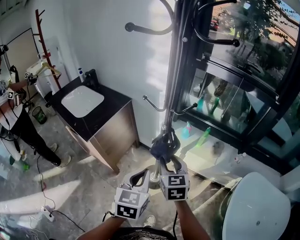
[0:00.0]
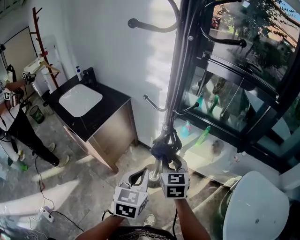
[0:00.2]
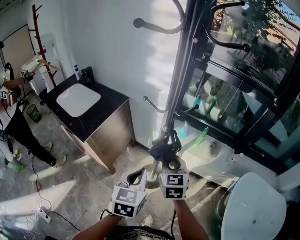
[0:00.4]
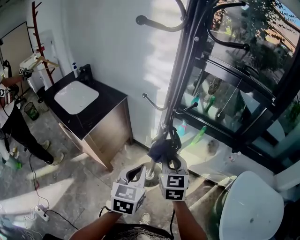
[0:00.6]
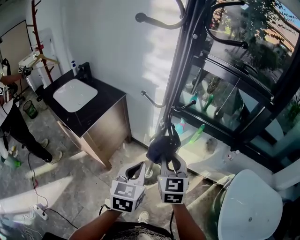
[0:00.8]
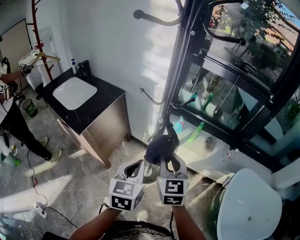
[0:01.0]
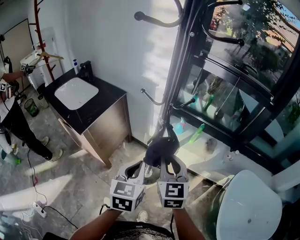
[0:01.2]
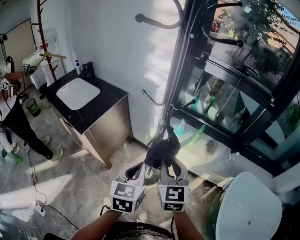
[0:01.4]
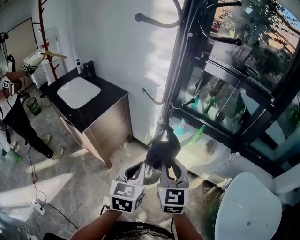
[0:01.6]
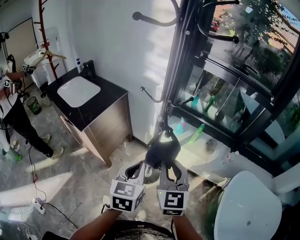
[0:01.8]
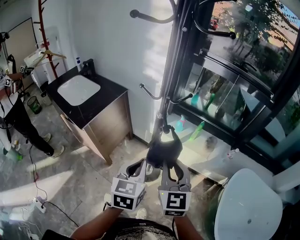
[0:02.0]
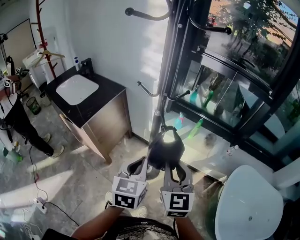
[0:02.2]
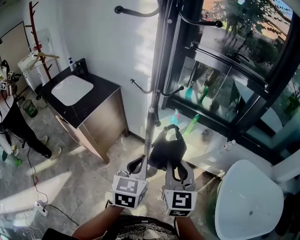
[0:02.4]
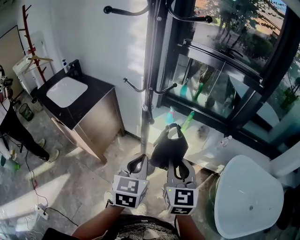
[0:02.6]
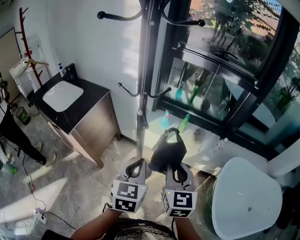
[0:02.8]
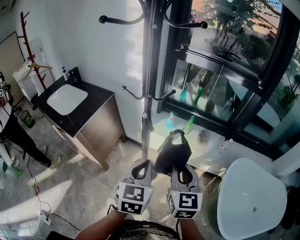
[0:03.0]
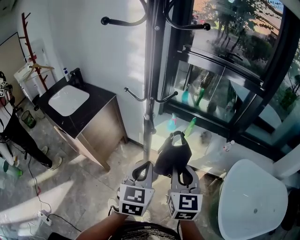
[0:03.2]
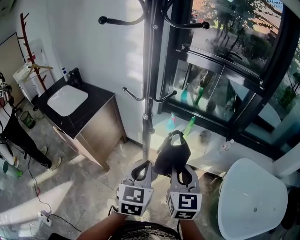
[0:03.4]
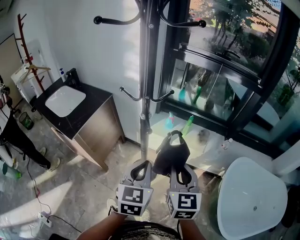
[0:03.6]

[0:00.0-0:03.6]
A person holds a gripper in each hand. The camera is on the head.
0:00.0 to 0:01.8: The right gripper shifts about 10 cm backward and upward, and closes.
0:01.8 to 0:03.6: The grippers both shift to the right by about 10 cm.

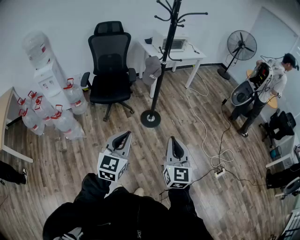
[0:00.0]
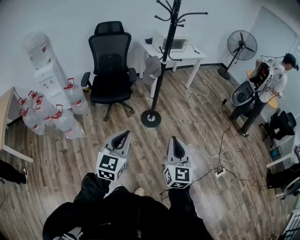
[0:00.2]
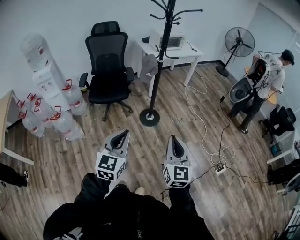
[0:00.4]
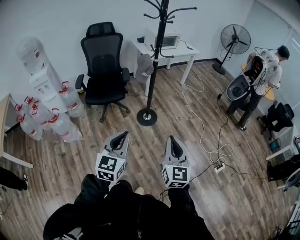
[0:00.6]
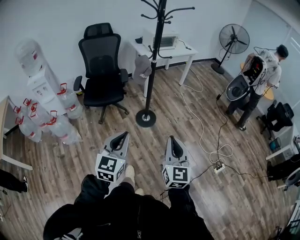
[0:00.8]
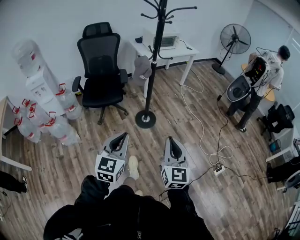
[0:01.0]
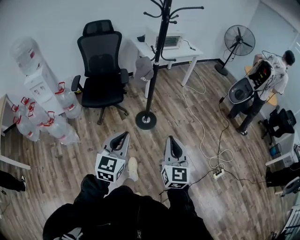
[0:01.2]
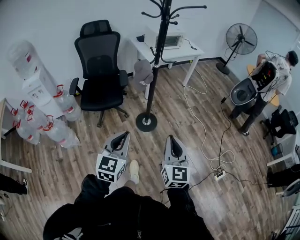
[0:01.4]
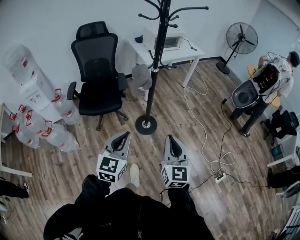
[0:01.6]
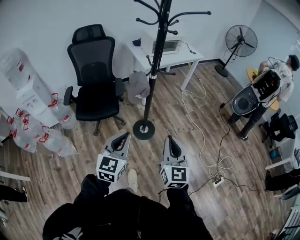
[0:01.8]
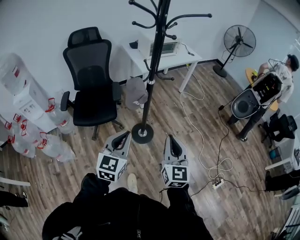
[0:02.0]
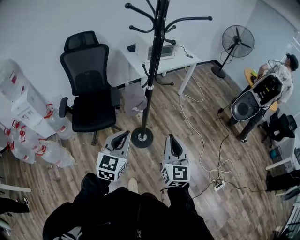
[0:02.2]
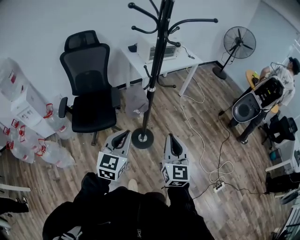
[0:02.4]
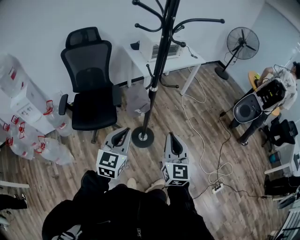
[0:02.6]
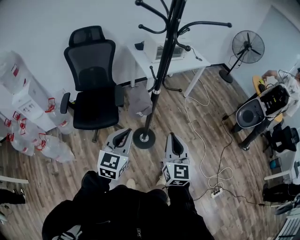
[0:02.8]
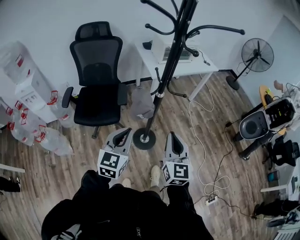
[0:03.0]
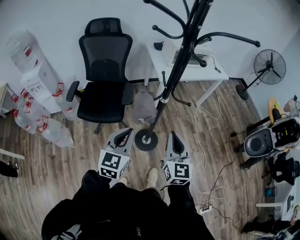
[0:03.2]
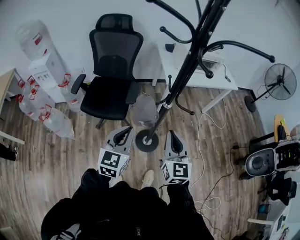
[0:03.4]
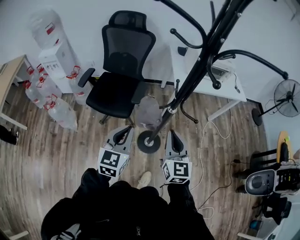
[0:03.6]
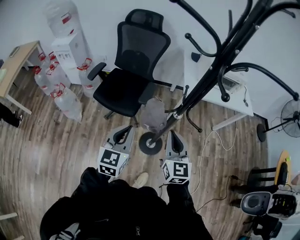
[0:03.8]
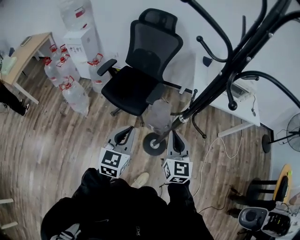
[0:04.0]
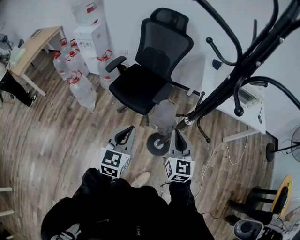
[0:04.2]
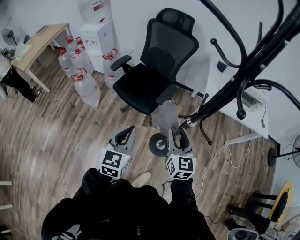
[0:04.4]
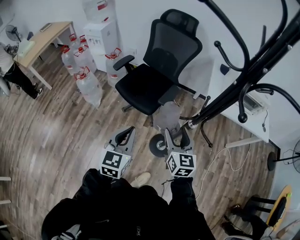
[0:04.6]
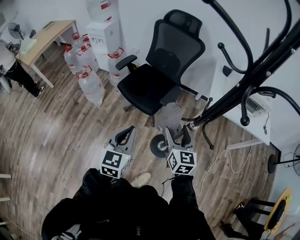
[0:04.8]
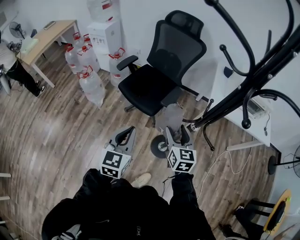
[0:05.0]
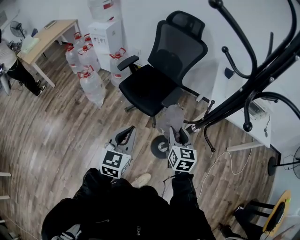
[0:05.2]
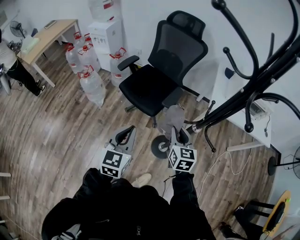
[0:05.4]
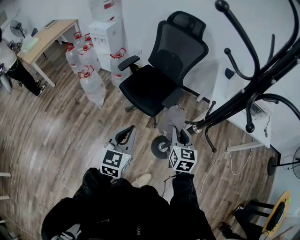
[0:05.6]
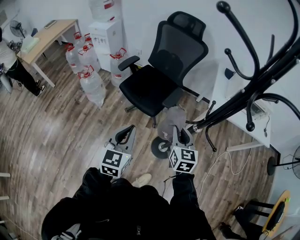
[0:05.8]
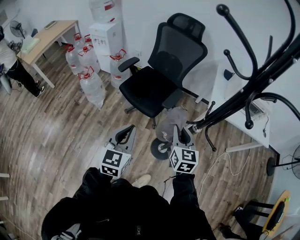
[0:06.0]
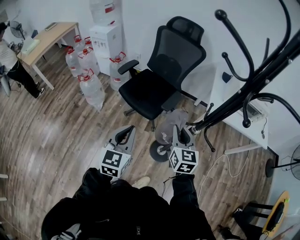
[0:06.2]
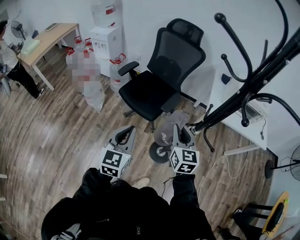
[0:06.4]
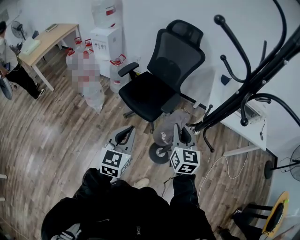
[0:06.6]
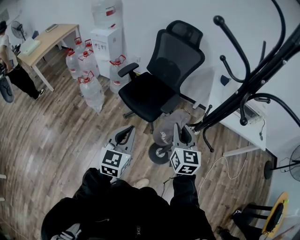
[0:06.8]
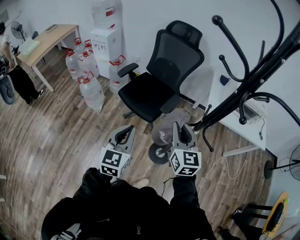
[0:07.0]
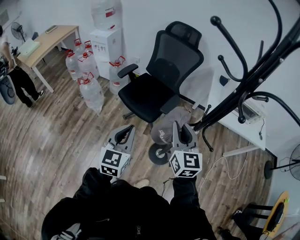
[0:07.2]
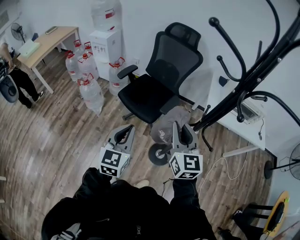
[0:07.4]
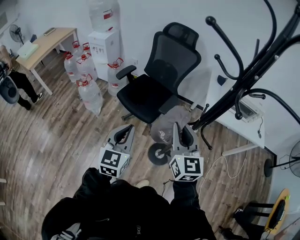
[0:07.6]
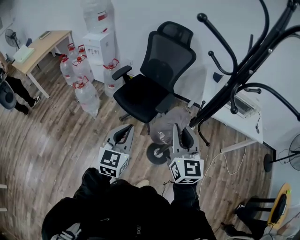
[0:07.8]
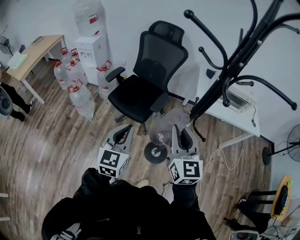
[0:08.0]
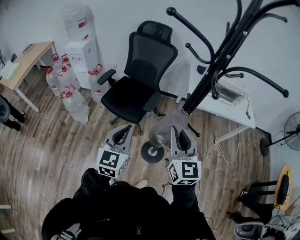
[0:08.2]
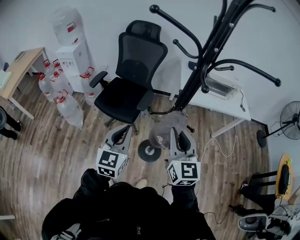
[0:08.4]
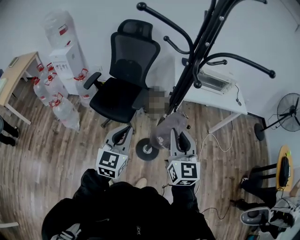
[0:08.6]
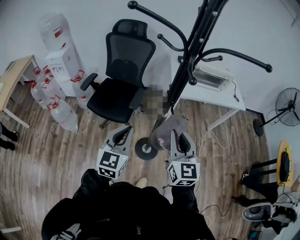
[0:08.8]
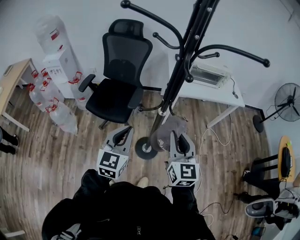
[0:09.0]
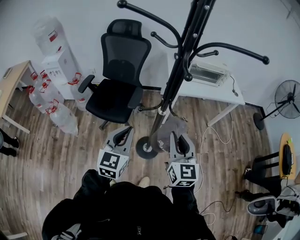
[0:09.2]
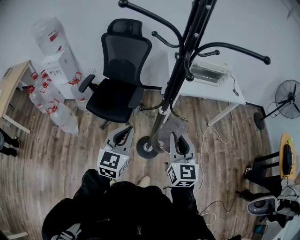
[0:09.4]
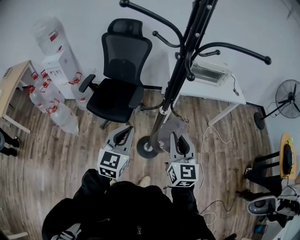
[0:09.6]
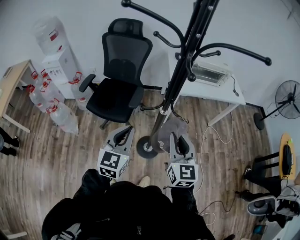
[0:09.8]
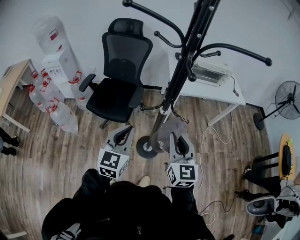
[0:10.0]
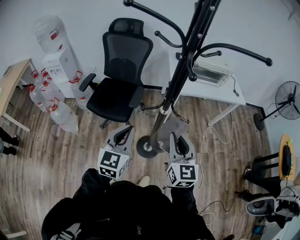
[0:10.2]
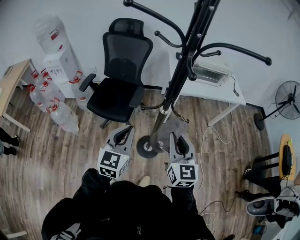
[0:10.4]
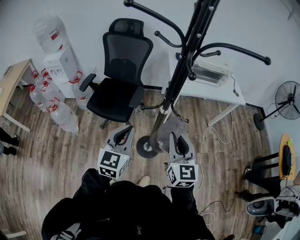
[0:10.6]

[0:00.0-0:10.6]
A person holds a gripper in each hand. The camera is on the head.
0:00.0 to 0:01.6: The grippers both shift forward by about 25 cm.
0:01.6 to 0:03.0: The grippers both shift forward by roughly 30 cm.
0:03.0 to 0:04.6: The right gripper moves roughly 25 cm, swivels about 50 degrees, and opens up, while the left gripper changes place by roughly 10 cm, and rotates roughly 40 degrees.
0:04.6 to 0:06.0: The right gripper closes up.
0:06.0 to 0:07.6: The right gripper travels upward and backward by approximately 15 cm.
0:07.6 to 0:09.0: The right gripper moves to the right and backward, some 15 cm, and changes its angle by about 20 degrees. Meanwhile the left gripper shifts roughly 15 cm to the right, and changes its angle by about 20 degrees.
0:09.0 to 0:10.6: The grippers stay close to where they were, moving slightly.

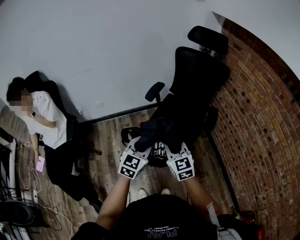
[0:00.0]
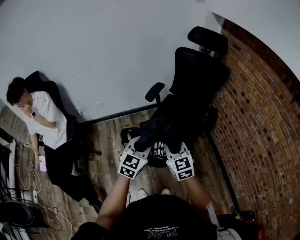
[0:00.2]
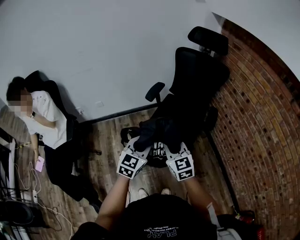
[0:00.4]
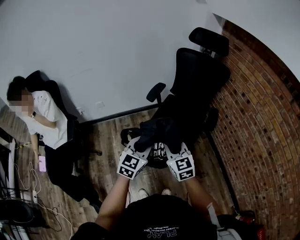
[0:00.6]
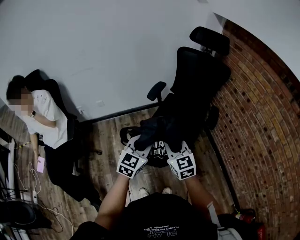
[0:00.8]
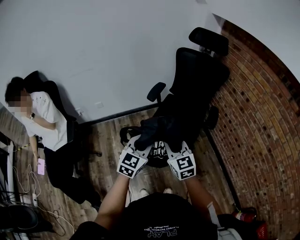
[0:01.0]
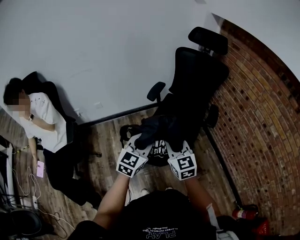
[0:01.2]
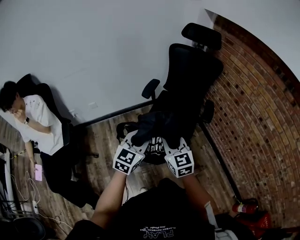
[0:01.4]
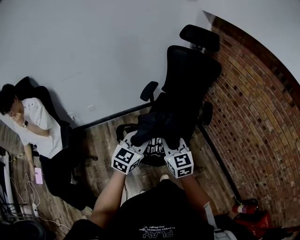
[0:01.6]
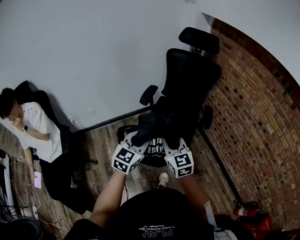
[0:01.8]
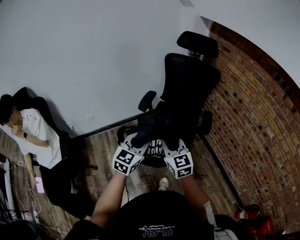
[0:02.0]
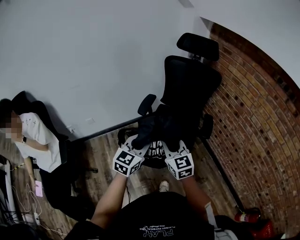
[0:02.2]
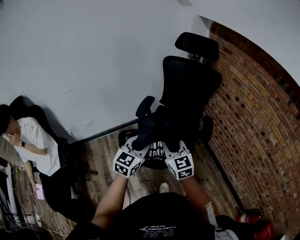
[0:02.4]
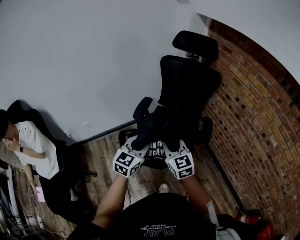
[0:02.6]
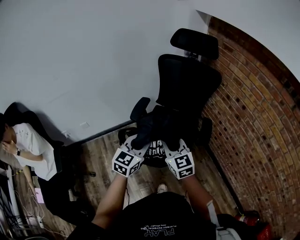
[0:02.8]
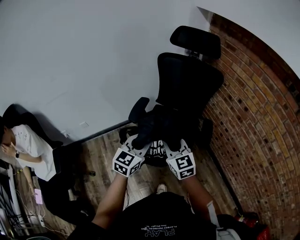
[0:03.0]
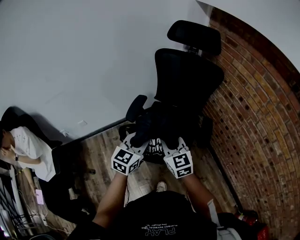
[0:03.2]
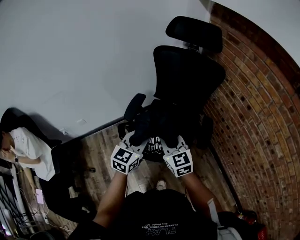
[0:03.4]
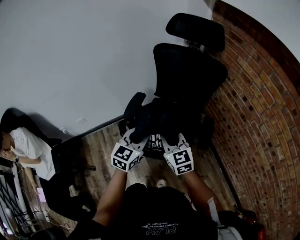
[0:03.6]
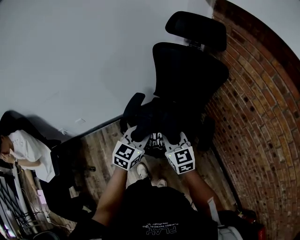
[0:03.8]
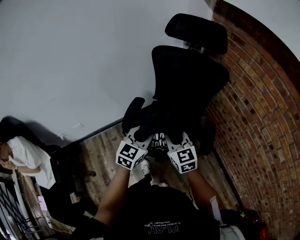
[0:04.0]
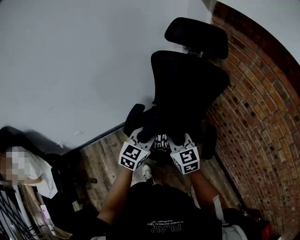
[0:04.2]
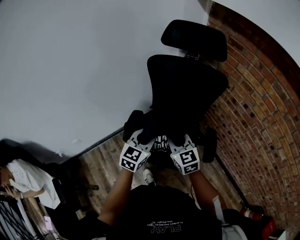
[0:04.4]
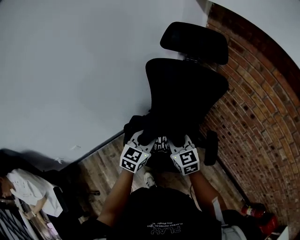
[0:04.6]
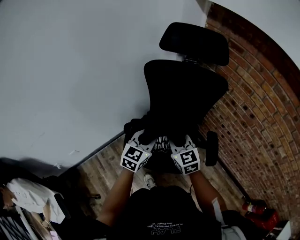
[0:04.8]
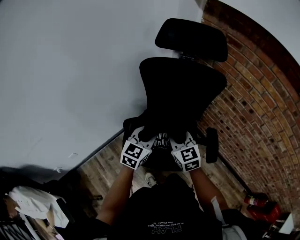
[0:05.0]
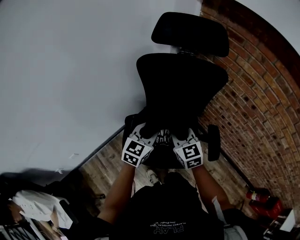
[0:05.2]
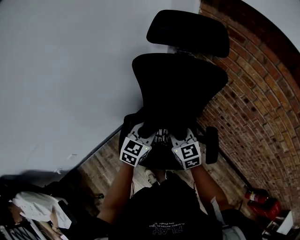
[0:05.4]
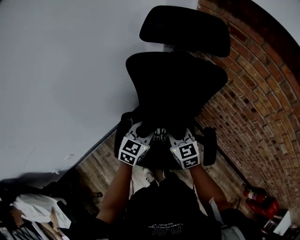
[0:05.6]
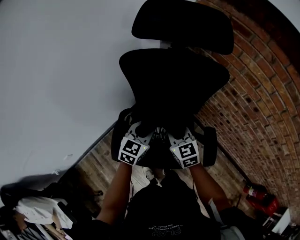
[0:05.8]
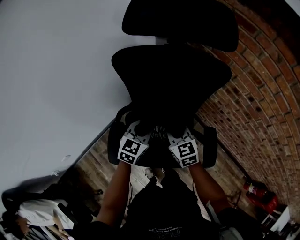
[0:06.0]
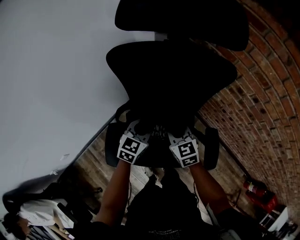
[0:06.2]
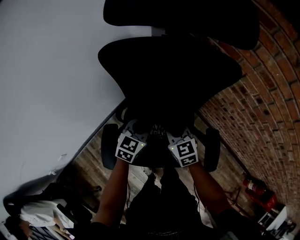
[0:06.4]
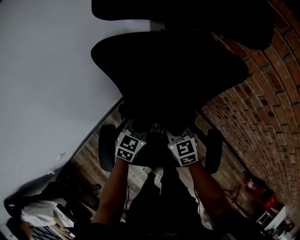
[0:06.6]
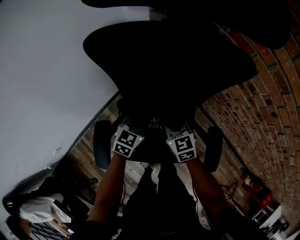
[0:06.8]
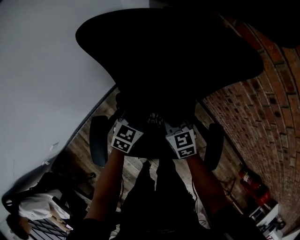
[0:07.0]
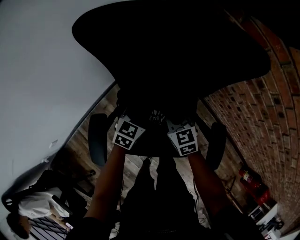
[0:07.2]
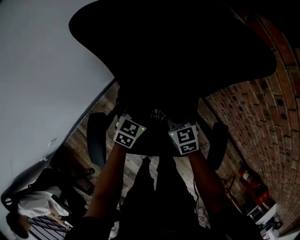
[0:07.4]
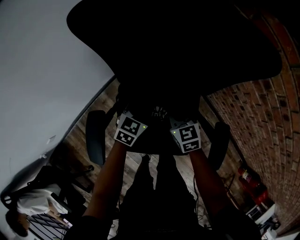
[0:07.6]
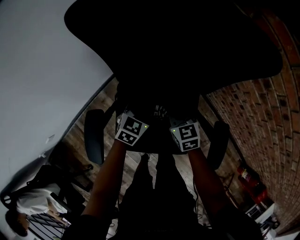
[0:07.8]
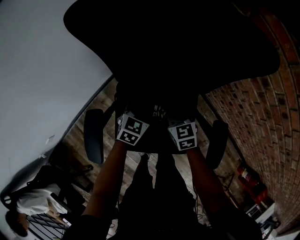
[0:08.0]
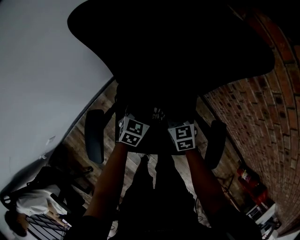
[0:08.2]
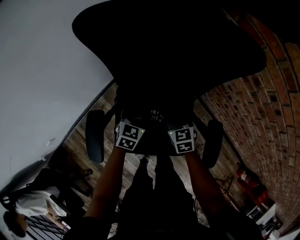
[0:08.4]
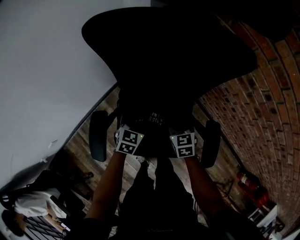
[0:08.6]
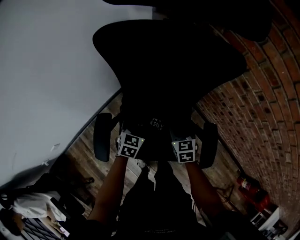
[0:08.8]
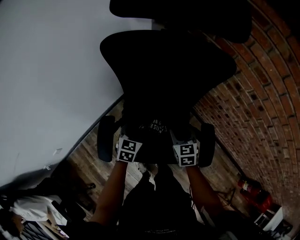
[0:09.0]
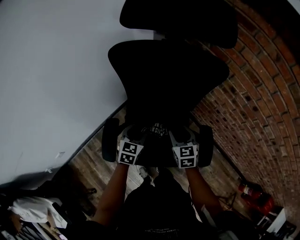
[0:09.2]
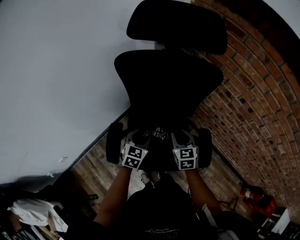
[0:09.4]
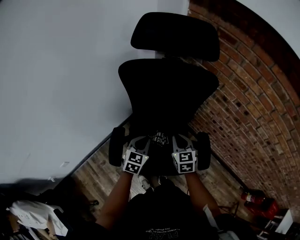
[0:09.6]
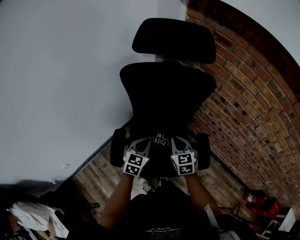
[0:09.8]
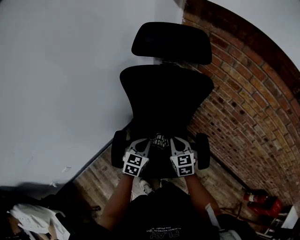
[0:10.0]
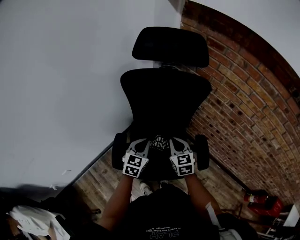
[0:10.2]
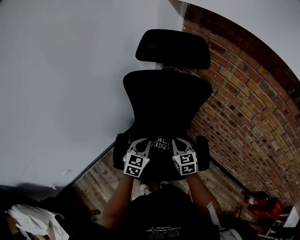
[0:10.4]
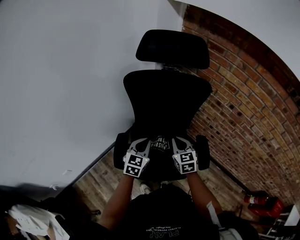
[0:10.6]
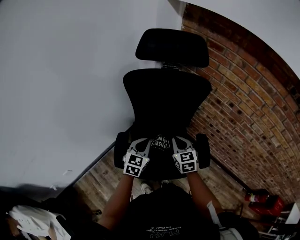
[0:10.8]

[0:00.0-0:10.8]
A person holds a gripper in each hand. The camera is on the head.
0:00.0 to 0:01.6: The left gripper shifts by roughly 5 cm; the right gripper changes place by approximately 5 cm.
0:01.6 to 0:03.0: The grippers both shift forward by approximately 20 cm.
0:03.0 to 0:04.6: The two grippers go some 25 cm forward.
0:04.6 to 0:06.2: Both grippers move forward and downward, some 25 cm.
0:06.2 to 0:07.8: Both grippers move downward, roughly 15 cm.
0:07.8 to 0:09.2: The left gripper goes about 15 cm upward, backward and to the left, and opens its fingers. Meanwhile the right gripper travels upward and backward by approximately 15 cm, and opens its fingers.
0:09.2 to 0:10.8: The two grippers go roughly 15 cm upward and backward. The left gripper closes its fingers. The right gripper closes.
